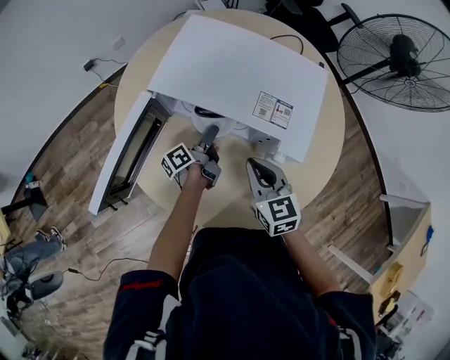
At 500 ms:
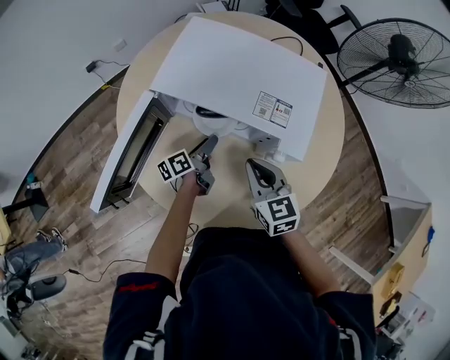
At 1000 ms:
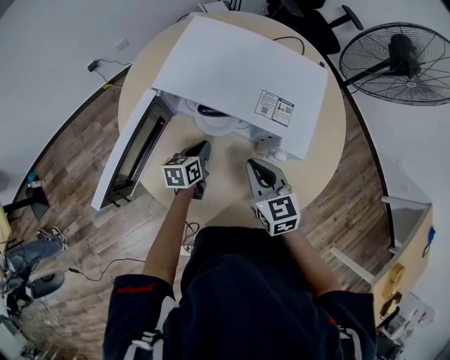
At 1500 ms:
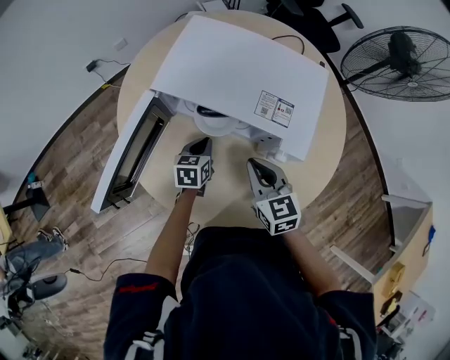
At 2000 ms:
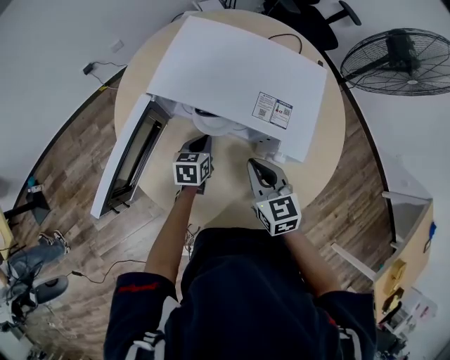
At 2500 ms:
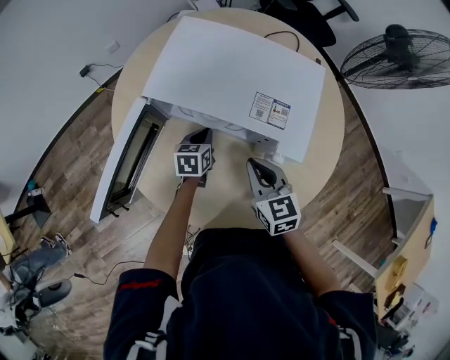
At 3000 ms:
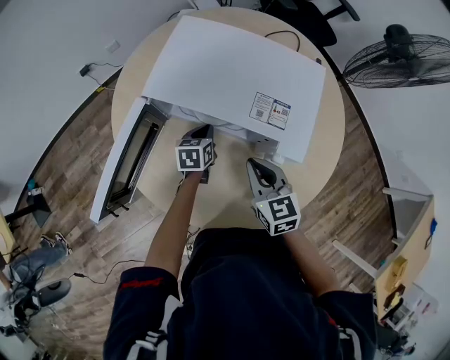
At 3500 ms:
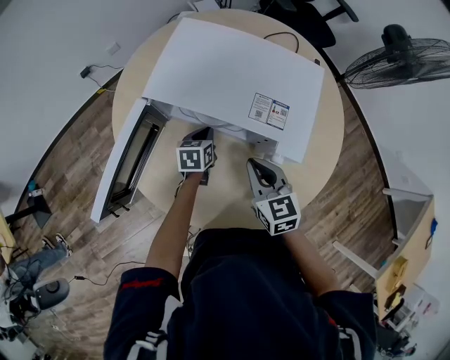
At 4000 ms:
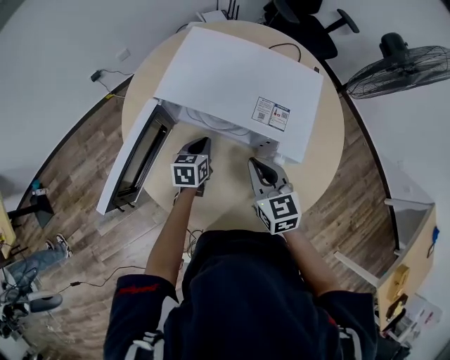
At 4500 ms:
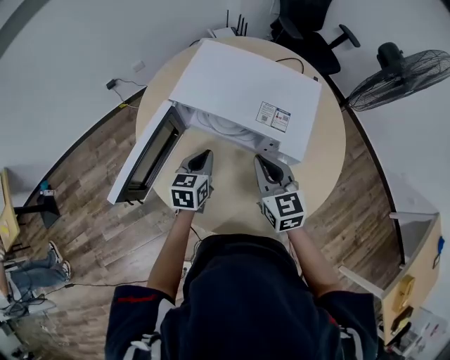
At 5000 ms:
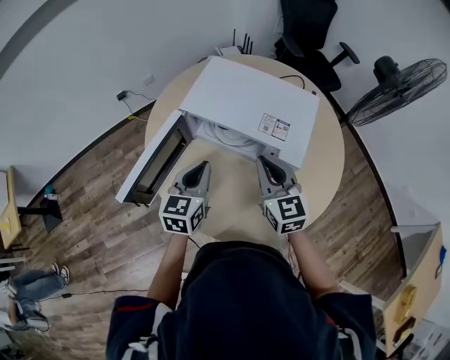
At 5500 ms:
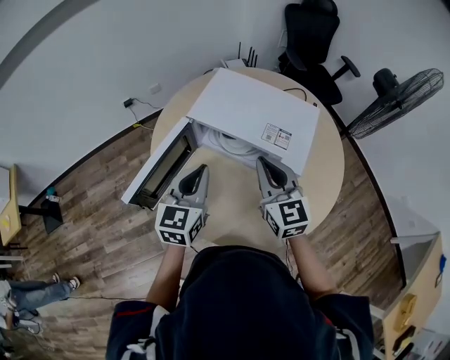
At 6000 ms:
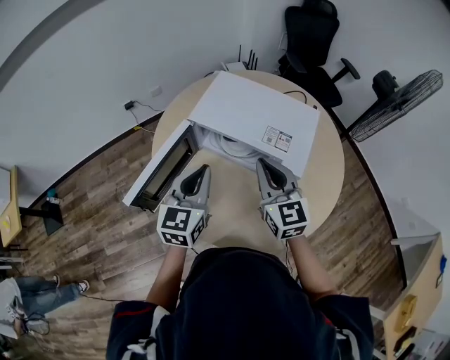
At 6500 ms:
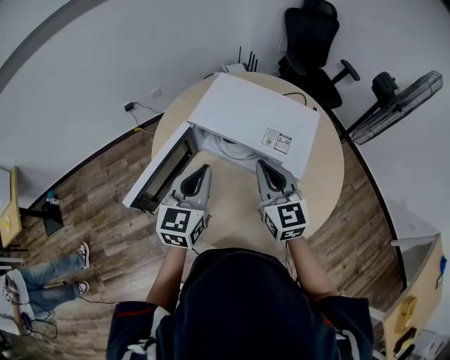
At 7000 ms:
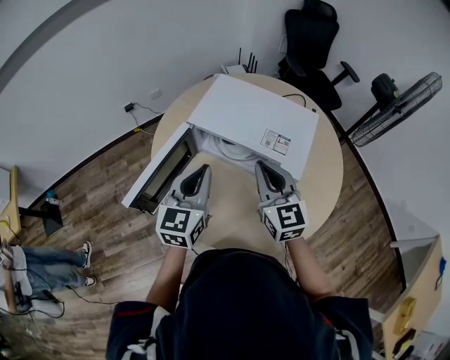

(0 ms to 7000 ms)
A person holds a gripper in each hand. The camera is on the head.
0 ms - 2000 ms: The left gripper twists roughly 60 degrees clockwise, seen from behind, and closes up.
2000 ms - 3500 ms: The grippers stay close to where they were, moving slightly.
3500 ms - 5000 ms: The right gripper travels upward by approximately 10 cm, while the left gripper shifts some 25 cm upward and backward, and swivels approximately 30 degrees.
5000 ms - 7000 ms: The right gripper changes place by some 5 cm, while the left gripper is displaced upward by approximately 10 cm.

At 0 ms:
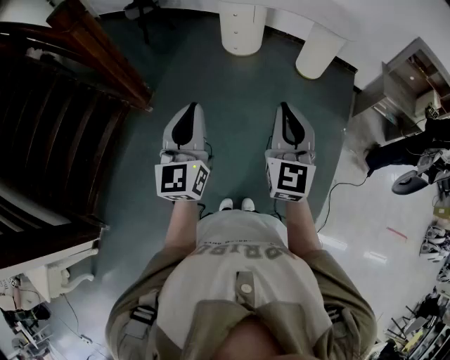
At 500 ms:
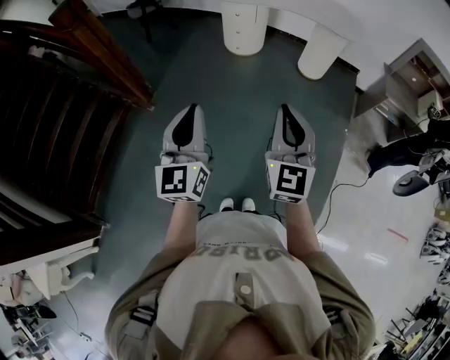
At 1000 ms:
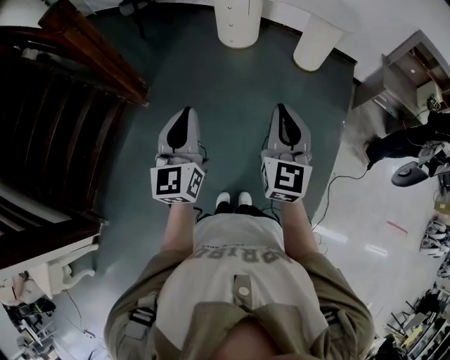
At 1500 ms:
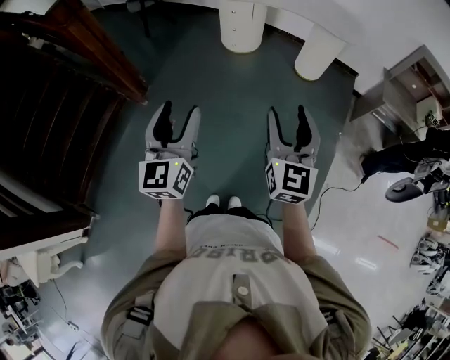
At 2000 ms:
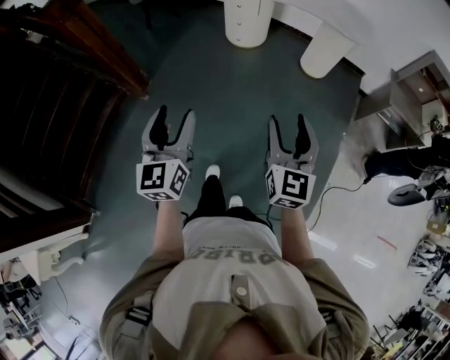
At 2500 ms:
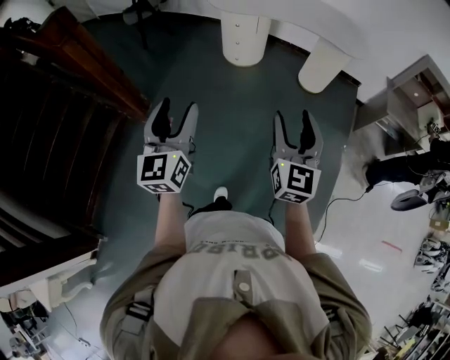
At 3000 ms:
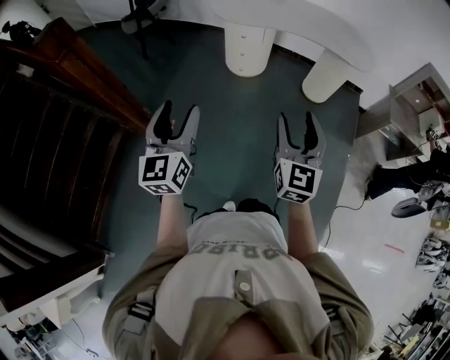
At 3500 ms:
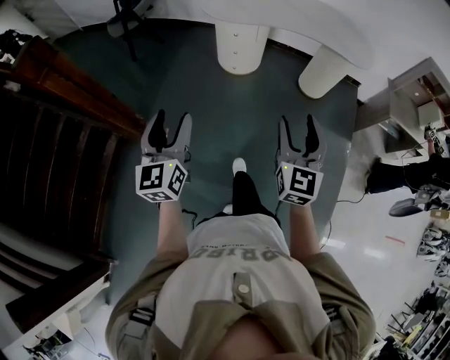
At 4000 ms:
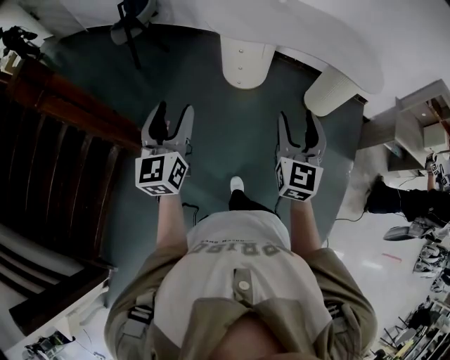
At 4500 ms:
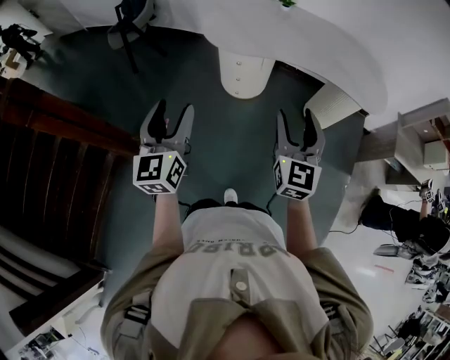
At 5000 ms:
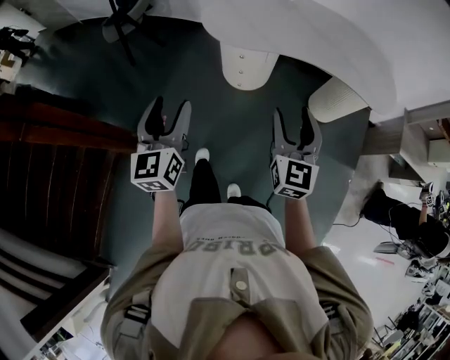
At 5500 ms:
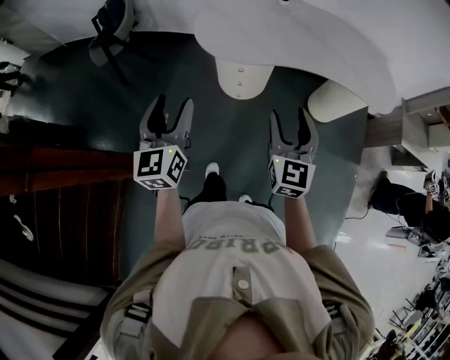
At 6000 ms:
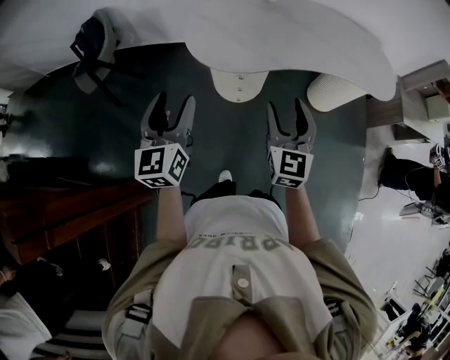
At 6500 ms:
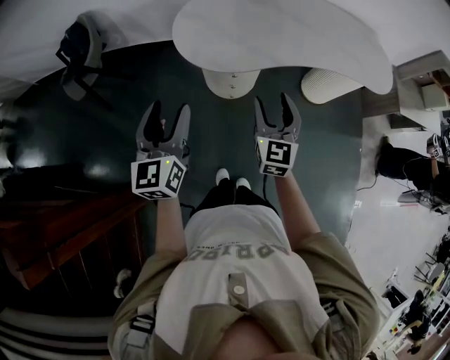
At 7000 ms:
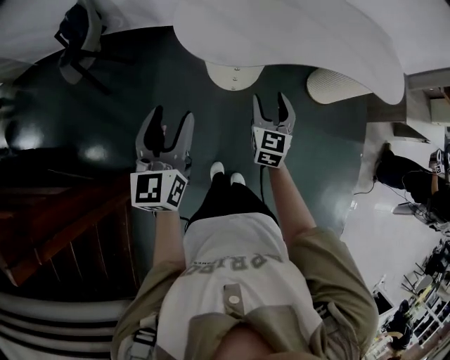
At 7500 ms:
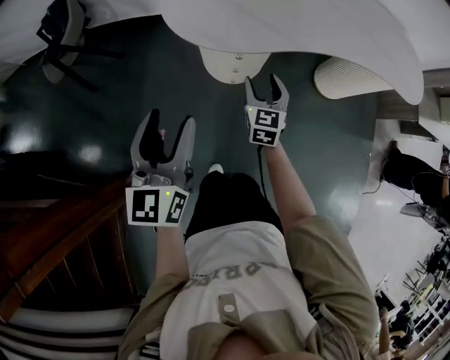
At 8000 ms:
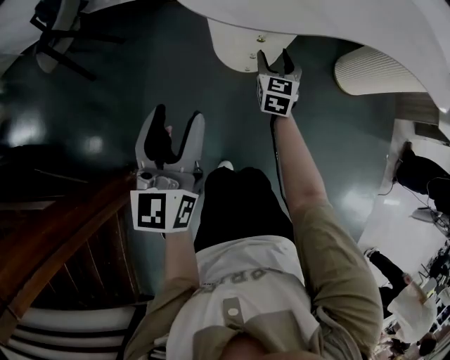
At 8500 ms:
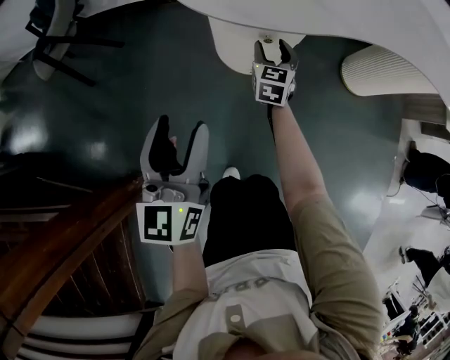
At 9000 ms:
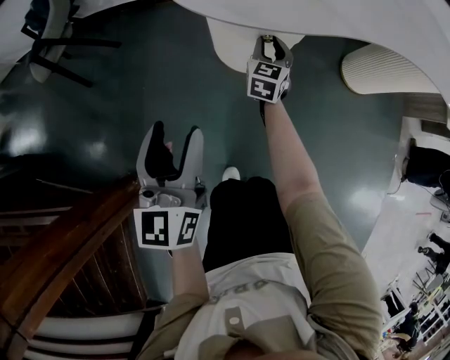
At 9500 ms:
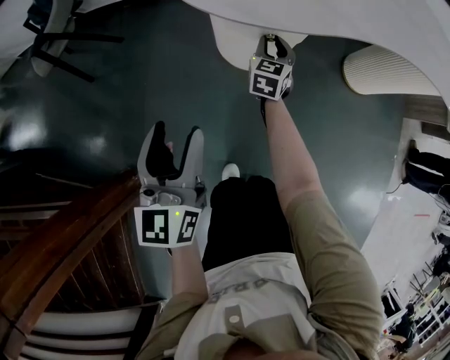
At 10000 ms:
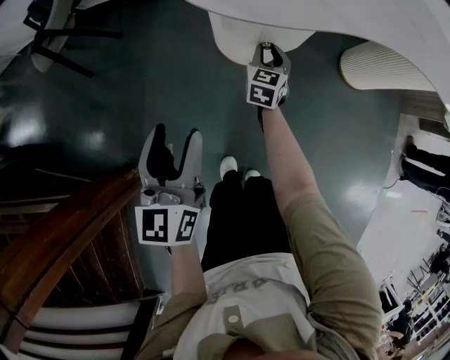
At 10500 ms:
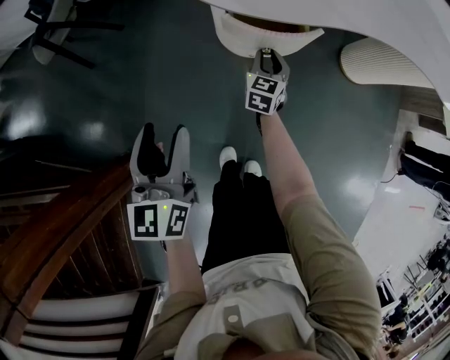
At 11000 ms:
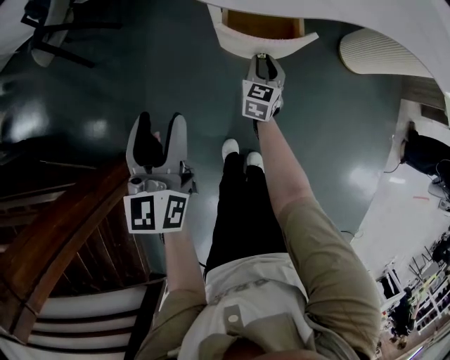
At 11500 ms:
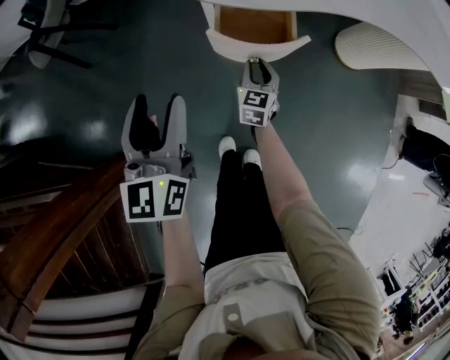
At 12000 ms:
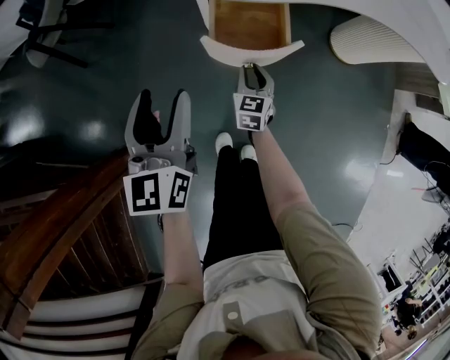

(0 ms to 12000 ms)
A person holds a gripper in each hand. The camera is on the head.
0 ms - 2000 ms: The right gripper shifts about 10 cm to the right and downward, and opens up, while the left gripper heads downward, covering approximately 5 cm, and opens its fingers.
2000 ms - 4000 ms: Both grippers move forward, approximately 40 cm.
4000 ms - 6000 ms: The grippers both shift forward by approximately 35 cm.
6000 ms - 8000 ms: The left gripper moves downward, some 25 cm. Meanwhile the right gripper shifts approximately 50 cm downward and forward.
8000 ms - 10000 ms: The right gripper ends up about 5 cm from where it was, and closes.
10000 ms - 12000 ms: The right gripper shifts about 15 cm backward; the left gripper moves some 5 cm.

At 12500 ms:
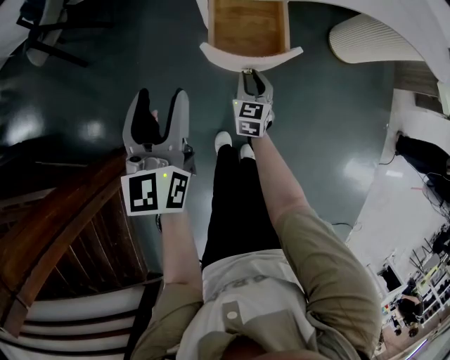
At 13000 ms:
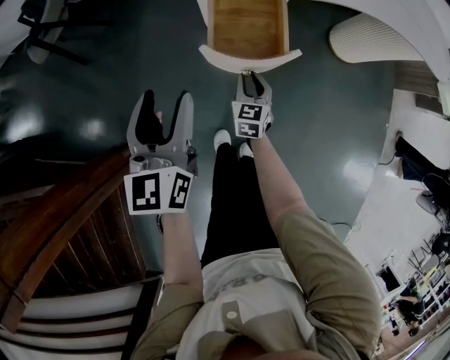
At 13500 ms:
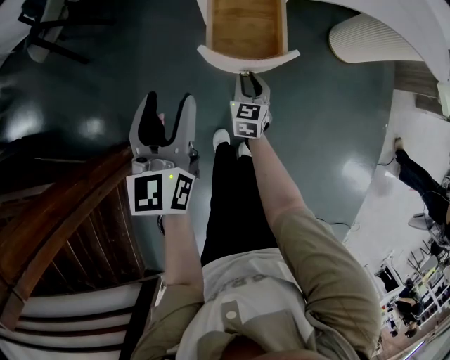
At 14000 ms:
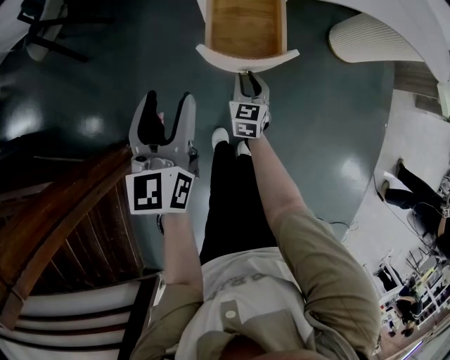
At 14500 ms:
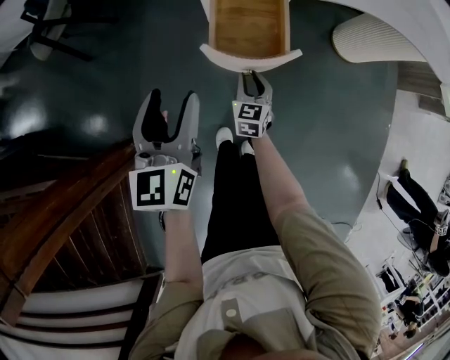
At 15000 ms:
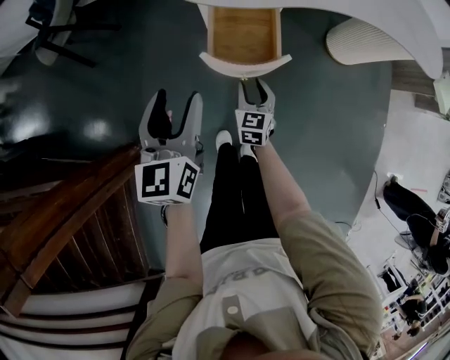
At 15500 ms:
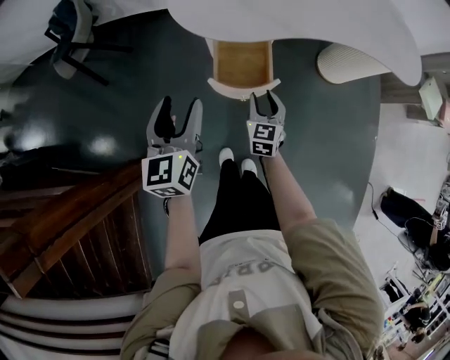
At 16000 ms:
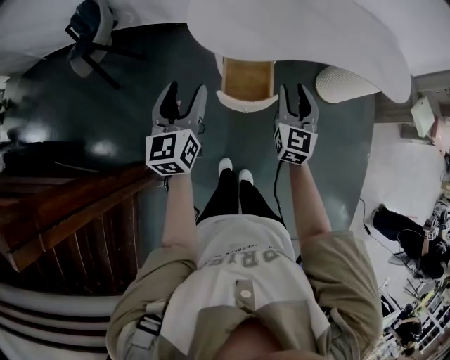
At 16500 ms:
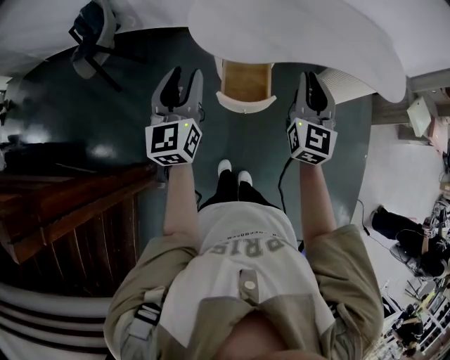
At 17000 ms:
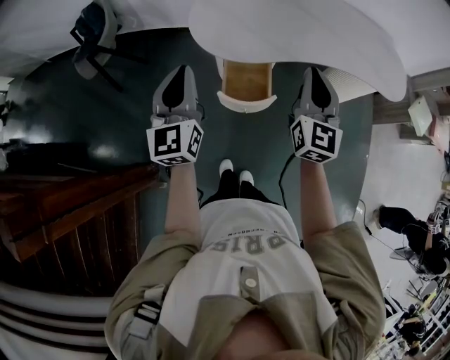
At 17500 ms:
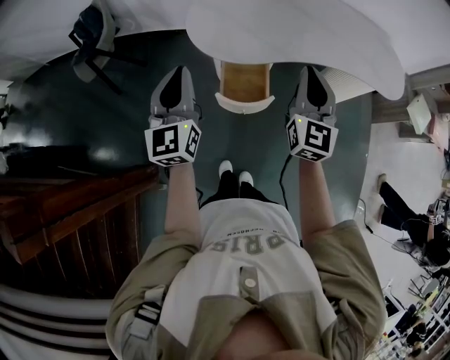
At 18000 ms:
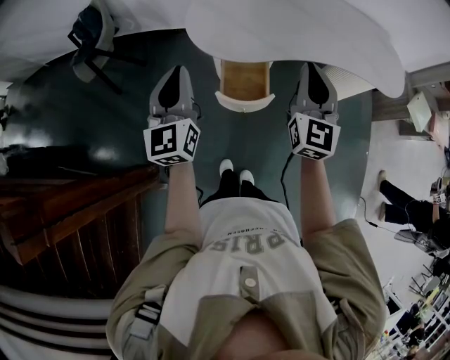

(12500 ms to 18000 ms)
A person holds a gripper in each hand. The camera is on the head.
12500 ms - 14500 ms: The grippers make only small movements.
14500 ms - 16000 ms: The right gripper travels upward by roughly 40 cm, and rotates some 20 degrees. Meanwhile the left gripper goes roughly 20 cm upward.
16000 ms - 18000 ms: The left gripper heads upward, covering about 10 cm, and closes. The right gripper moves upward, roughly 15 cm, and closes.

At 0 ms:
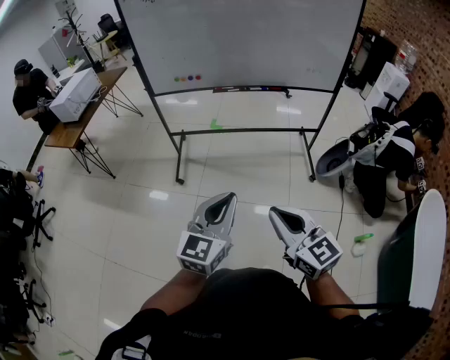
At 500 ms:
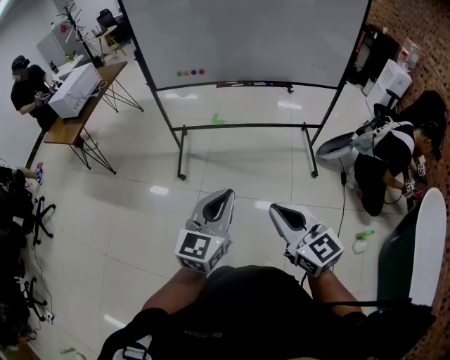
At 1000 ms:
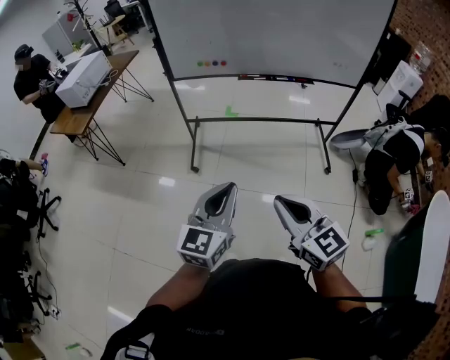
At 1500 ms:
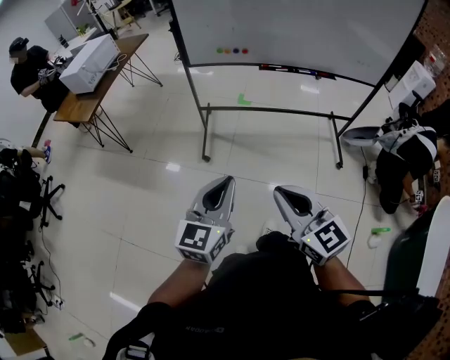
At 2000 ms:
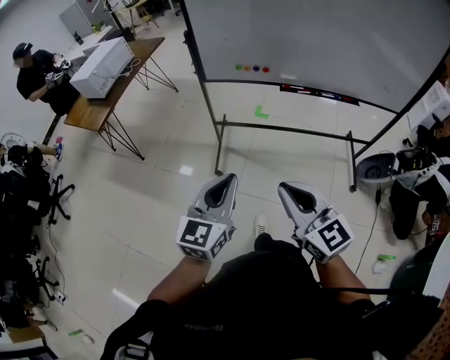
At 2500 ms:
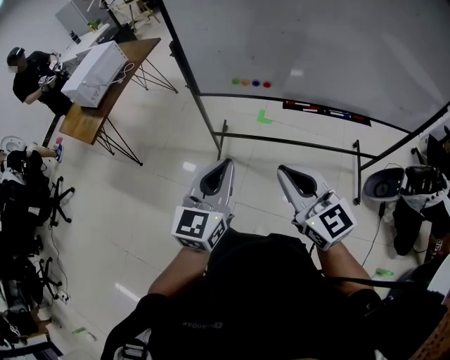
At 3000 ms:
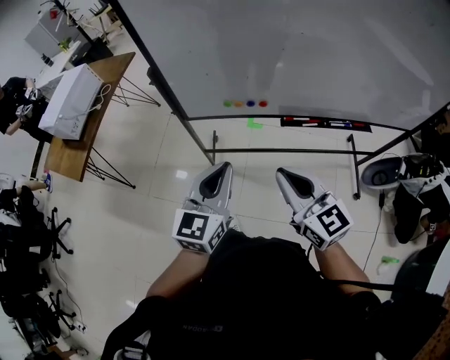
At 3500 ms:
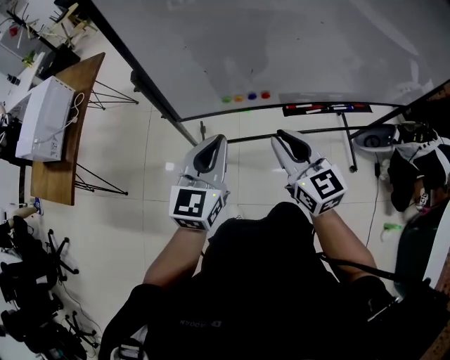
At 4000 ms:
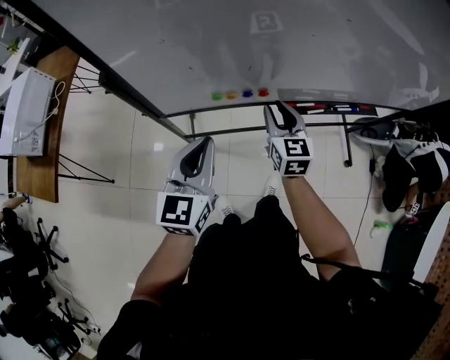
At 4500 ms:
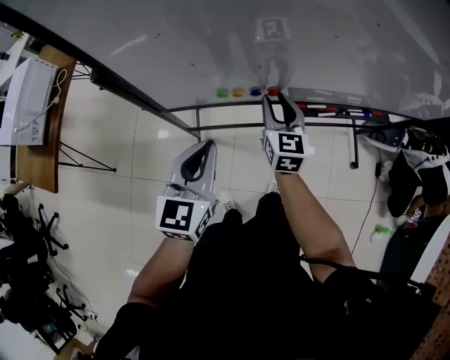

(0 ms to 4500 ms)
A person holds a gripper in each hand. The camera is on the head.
0 ms - 2000 ms: The two grippers go roughly 35 cm forward and to the left.
2000 ms - 4500 ms: The two grippers travel together, about 50 cm. The right gripper swivels approximately 40 degrees, and opens up.
